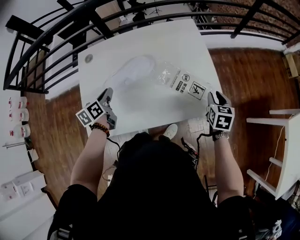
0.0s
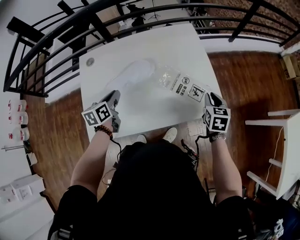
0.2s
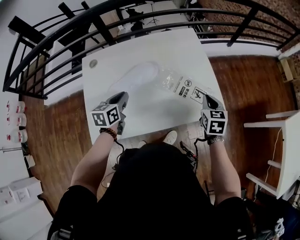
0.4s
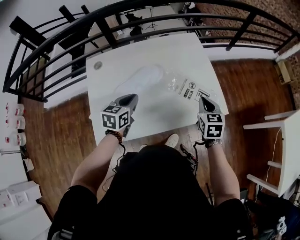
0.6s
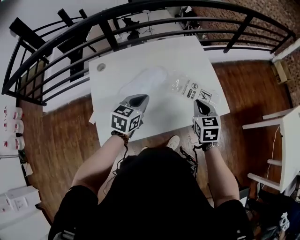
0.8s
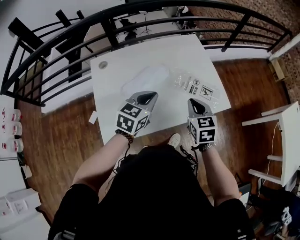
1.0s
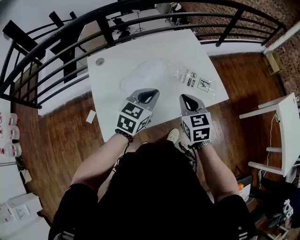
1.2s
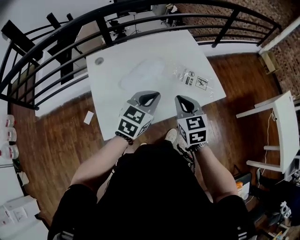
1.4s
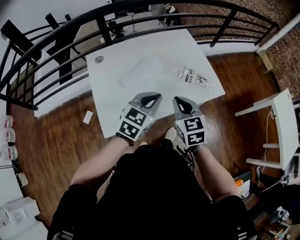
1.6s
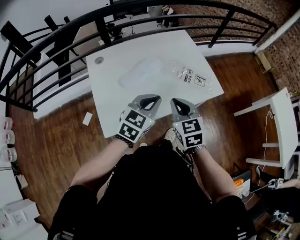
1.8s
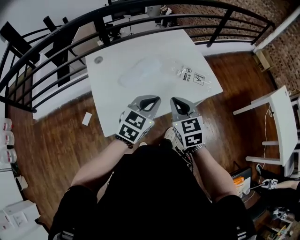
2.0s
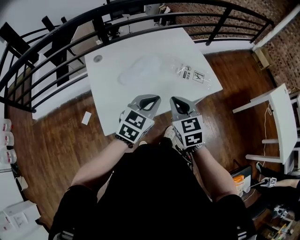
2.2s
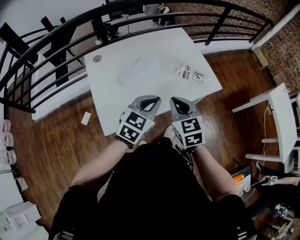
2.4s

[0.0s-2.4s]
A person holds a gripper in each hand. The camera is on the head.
0.0s to 1.2s: The right gripper travels to the left, backward and upward by approximately 30 cm, and closes, while the left gripper is displaced to the right, upward and backward by some 20 cm, and rotates around the line of its fingers by approximately 50 degrees, clockwise from behind.
1.2s to 2.4s: The grippers both shift backward by some 10 cm.

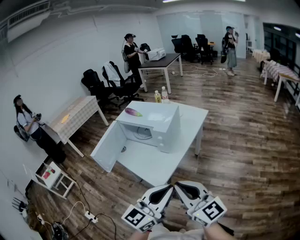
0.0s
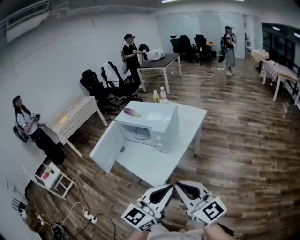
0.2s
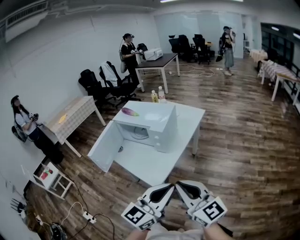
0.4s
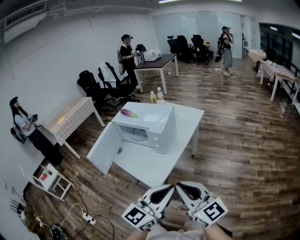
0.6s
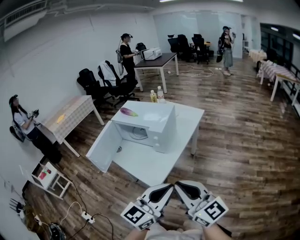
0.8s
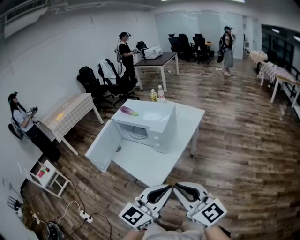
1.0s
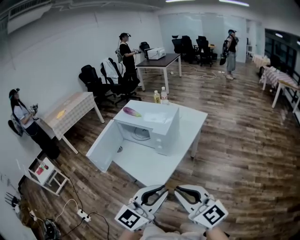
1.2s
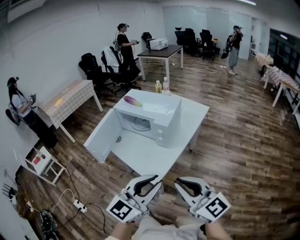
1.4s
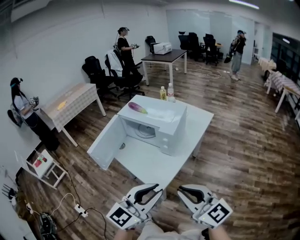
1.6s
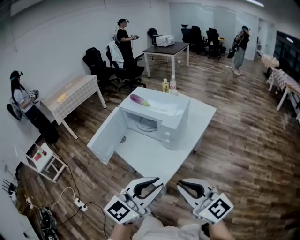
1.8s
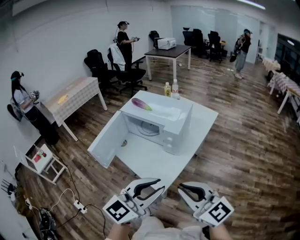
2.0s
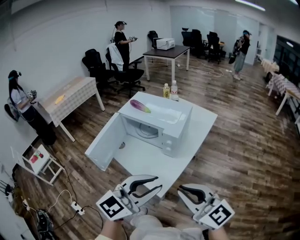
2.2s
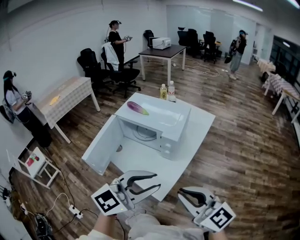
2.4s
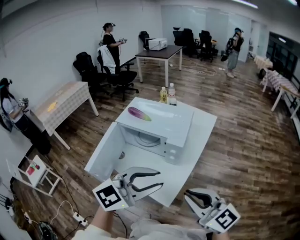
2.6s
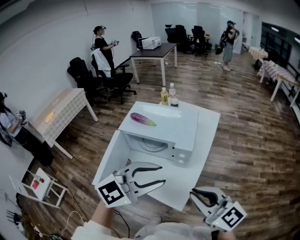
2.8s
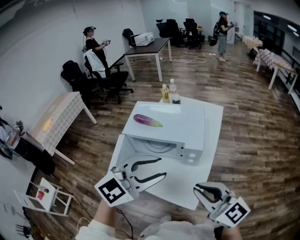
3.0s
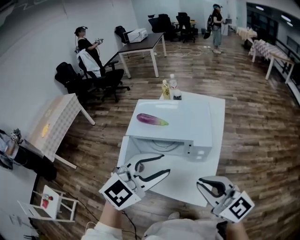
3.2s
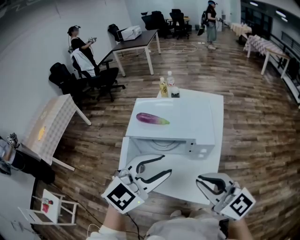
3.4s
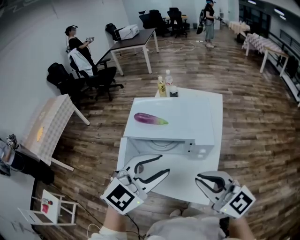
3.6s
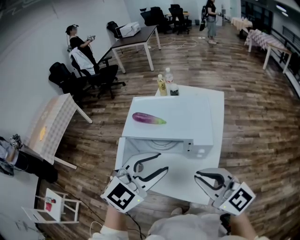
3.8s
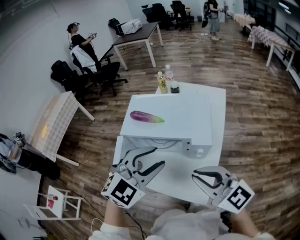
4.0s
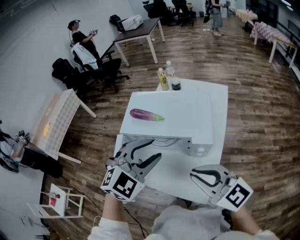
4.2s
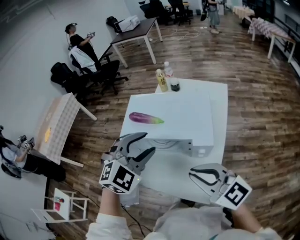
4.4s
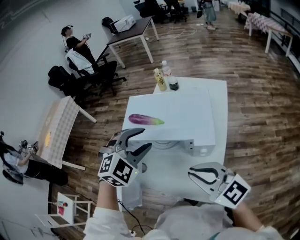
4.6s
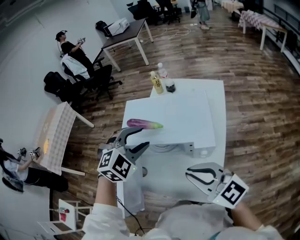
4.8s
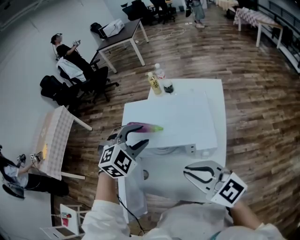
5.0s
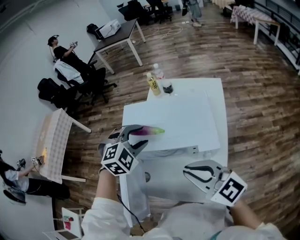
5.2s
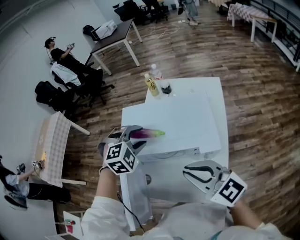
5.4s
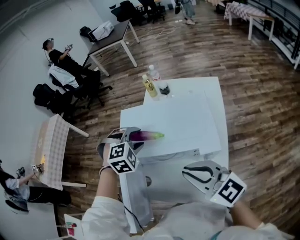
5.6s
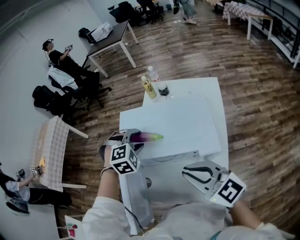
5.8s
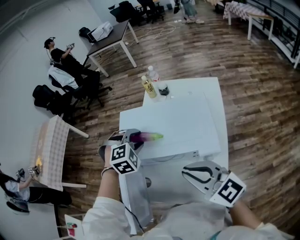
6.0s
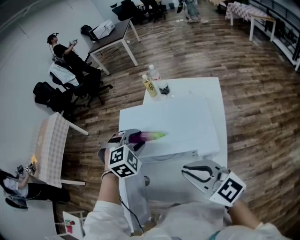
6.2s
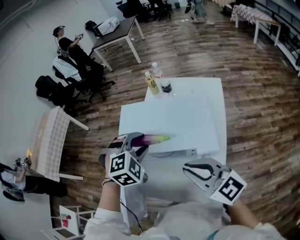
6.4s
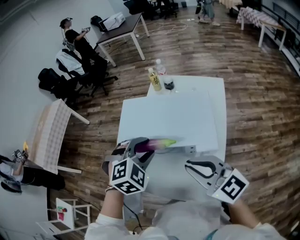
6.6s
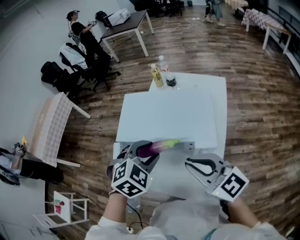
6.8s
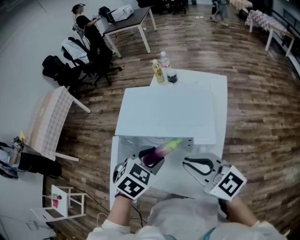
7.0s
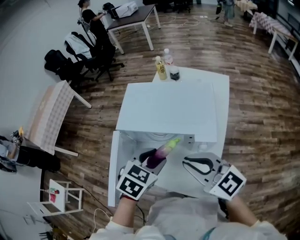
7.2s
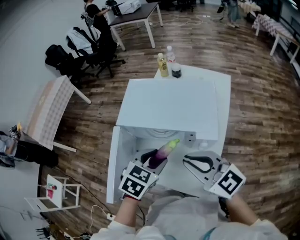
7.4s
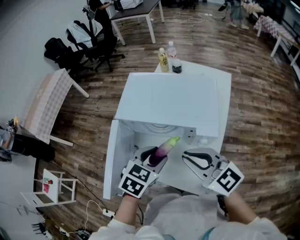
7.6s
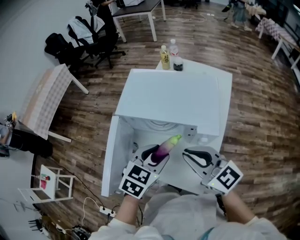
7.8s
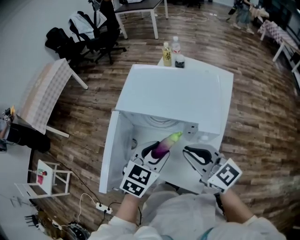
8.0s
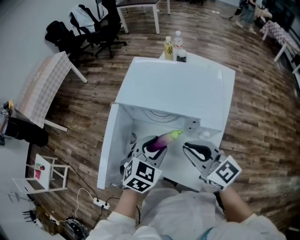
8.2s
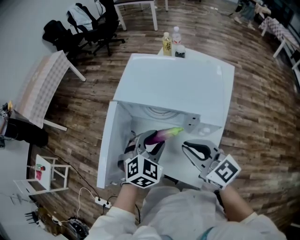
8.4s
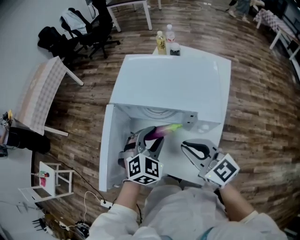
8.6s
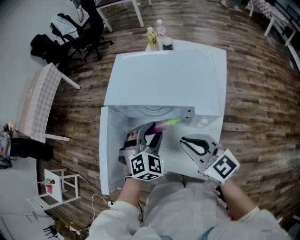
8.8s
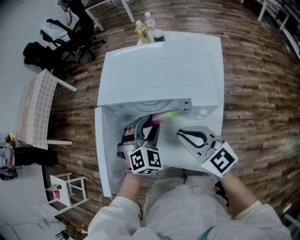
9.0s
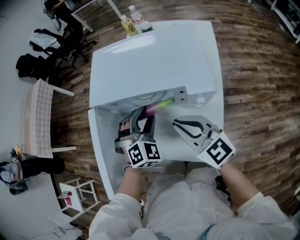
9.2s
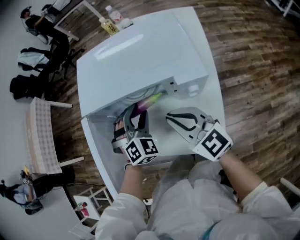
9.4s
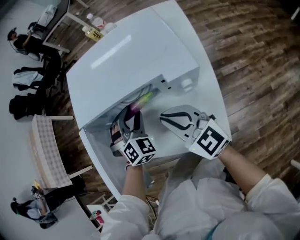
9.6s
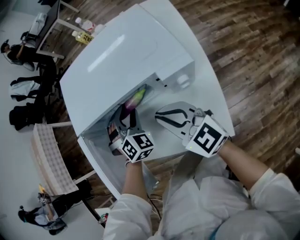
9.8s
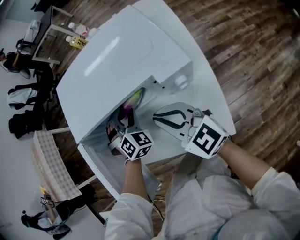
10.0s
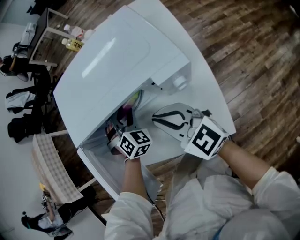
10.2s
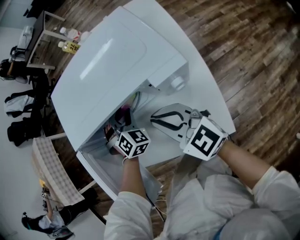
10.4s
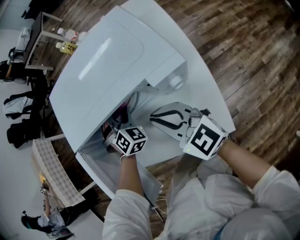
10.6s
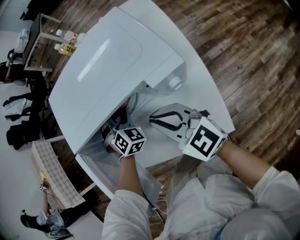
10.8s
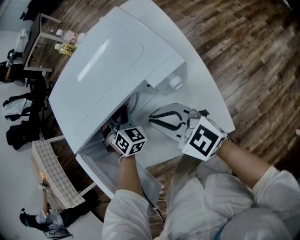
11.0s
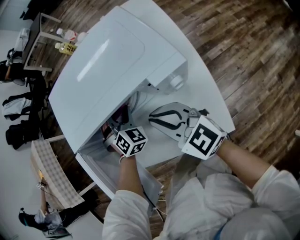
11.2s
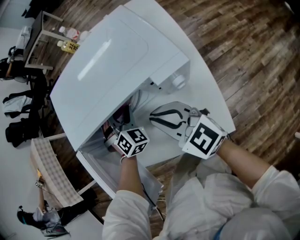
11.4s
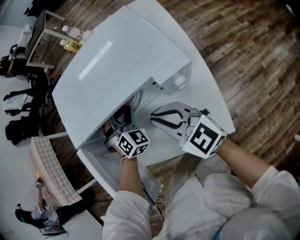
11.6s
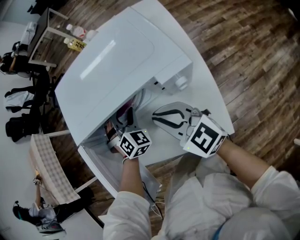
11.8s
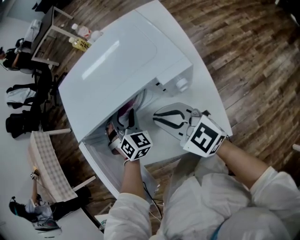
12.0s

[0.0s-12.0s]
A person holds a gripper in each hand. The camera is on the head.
0.0s to 1.6s: The left gripper goes roughly 5 cm to the left.
1.6s to 3.0s: The two grippers go about 25 cm forward and to the left. The left gripper rotates roughly 40 degrees, and opens up.
3.0s to 4.4s: The right gripper moves forward and to the left, roughly 10 cm. The left gripper heads forward, to the left and downward, covering roughly 15 cm, and rotates approximately 30 degrees.
4.4s to 6.0s: The left gripper is displaced forward and downward by approximately 20 cm, and changes its angle by some 30 degrees; the right gripper travels forward by some 10 cm.
6.0s to 7.6s: The left gripper shifts about 20 cm backward, and rolls counterclockwise, seen from behind, by approximately 60 degrees. Meanwhile the right gripper ends up about 5 cm from where it was.
7.6s to 9.0s: The left gripper travels downward and forward by some 10 cm, and twists some 40 degrees clockwise, seen from behind. The right gripper travels downward by some 5 cm.
9.0s to 10.4s: The right gripper travels downward by approximately 5 cm. Meanwhile the left gripper goes approximately 15 cm downward and forward.
10.4s to 12.0s: The grippers move only a little.

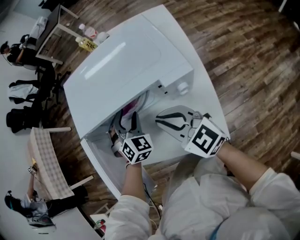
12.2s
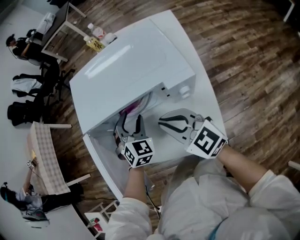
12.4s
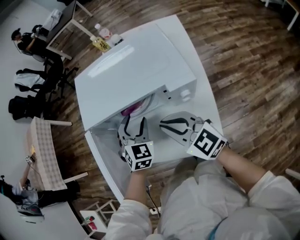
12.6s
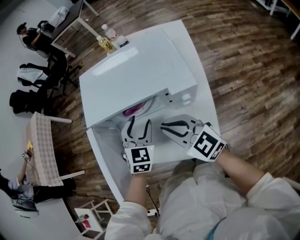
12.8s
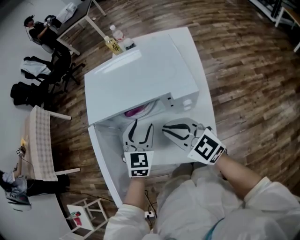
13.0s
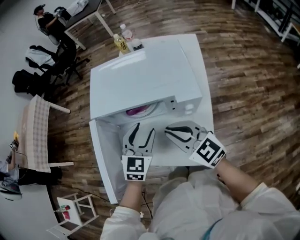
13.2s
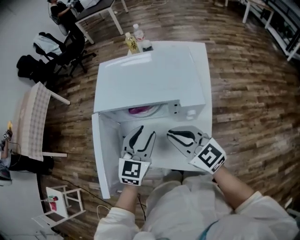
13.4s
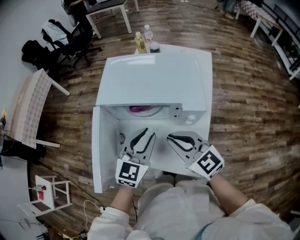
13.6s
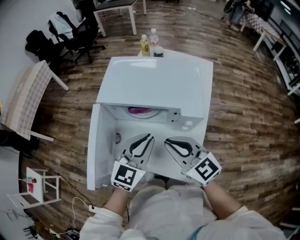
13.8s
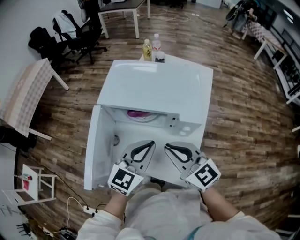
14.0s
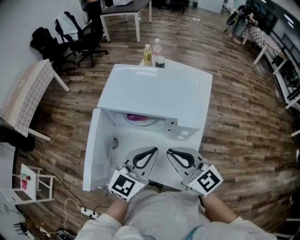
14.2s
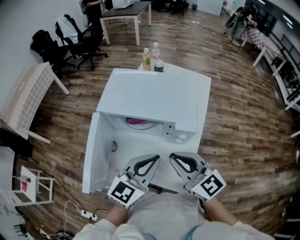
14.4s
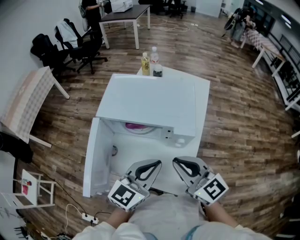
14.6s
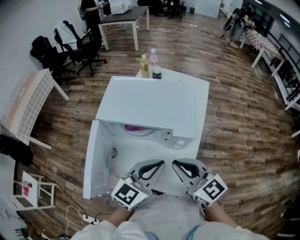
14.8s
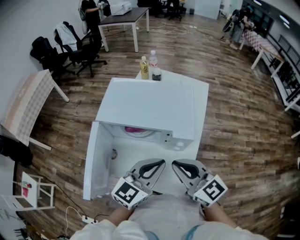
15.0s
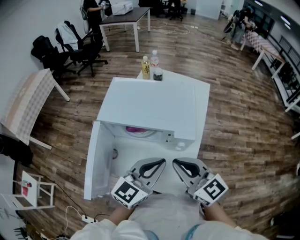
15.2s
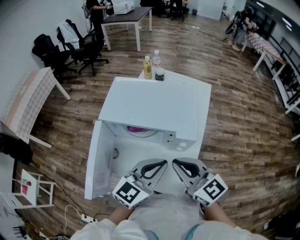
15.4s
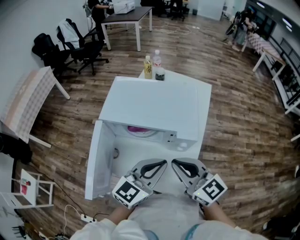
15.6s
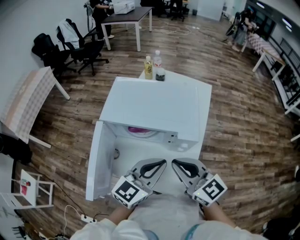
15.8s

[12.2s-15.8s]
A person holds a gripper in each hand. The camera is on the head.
12.2s to 14.0s: The left gripper heads upward and backward, covering about 25 cm, rolls counterclockwise, seen from behind, by roughly 40 degrees, and closes up. The right gripper shifts about 10 cm upward and backward.
14.0s to 15.8s: The left gripper shifts by about 5 cm.

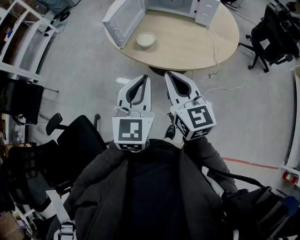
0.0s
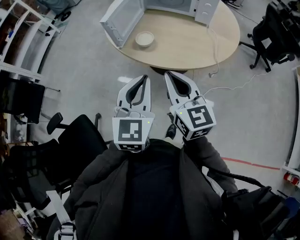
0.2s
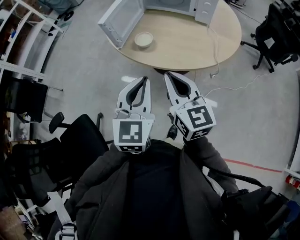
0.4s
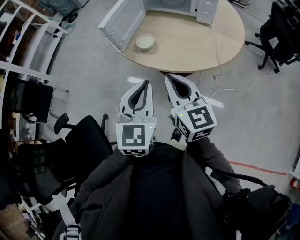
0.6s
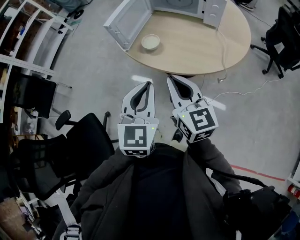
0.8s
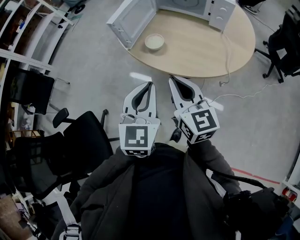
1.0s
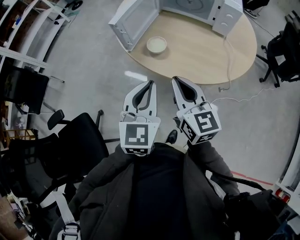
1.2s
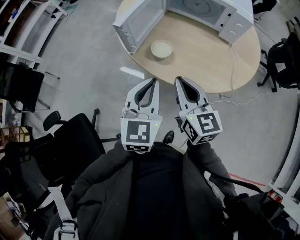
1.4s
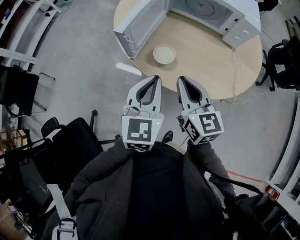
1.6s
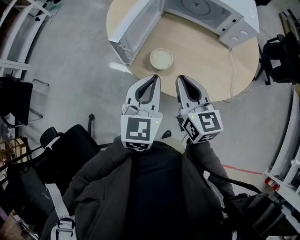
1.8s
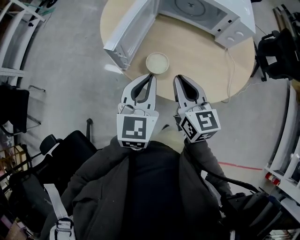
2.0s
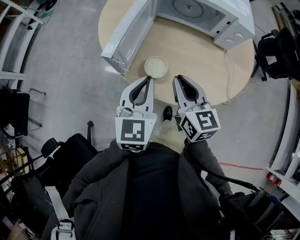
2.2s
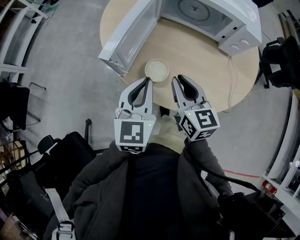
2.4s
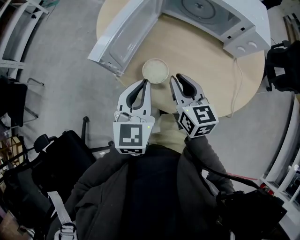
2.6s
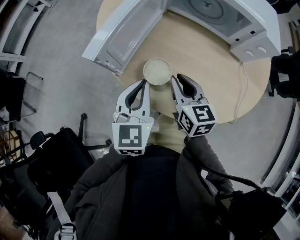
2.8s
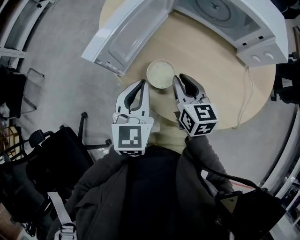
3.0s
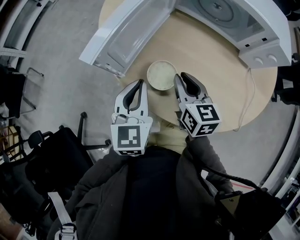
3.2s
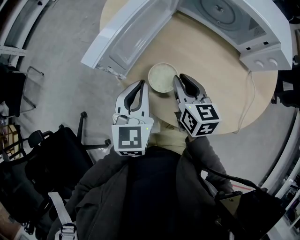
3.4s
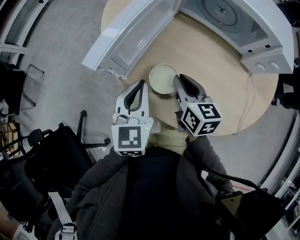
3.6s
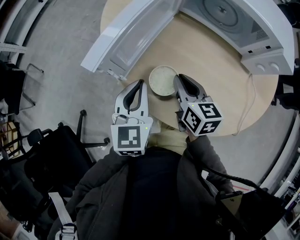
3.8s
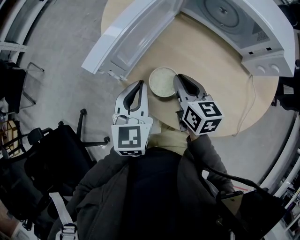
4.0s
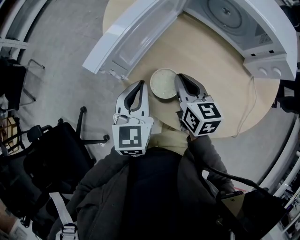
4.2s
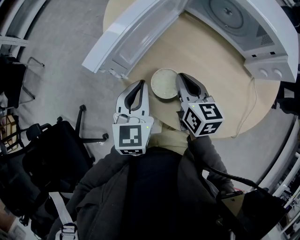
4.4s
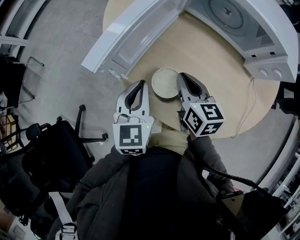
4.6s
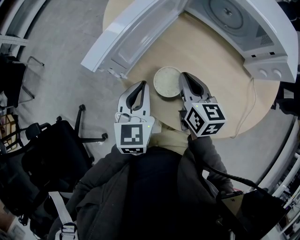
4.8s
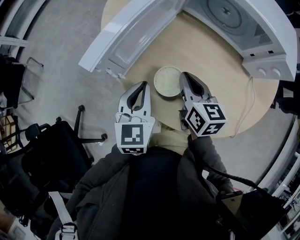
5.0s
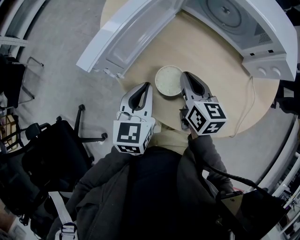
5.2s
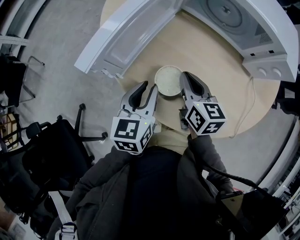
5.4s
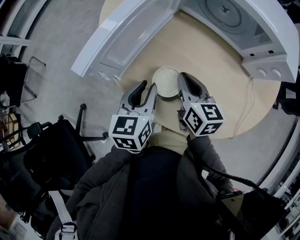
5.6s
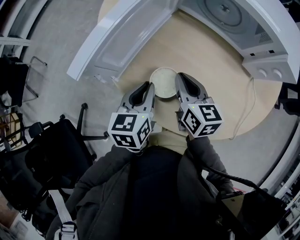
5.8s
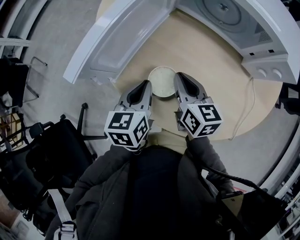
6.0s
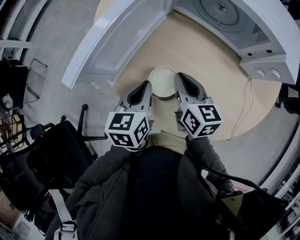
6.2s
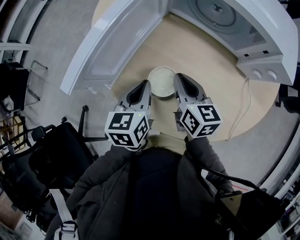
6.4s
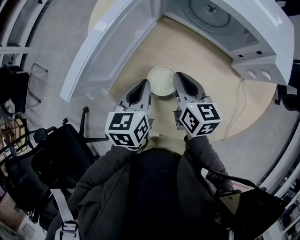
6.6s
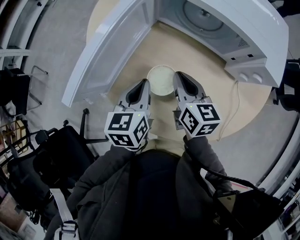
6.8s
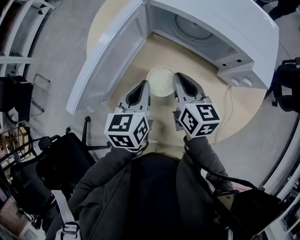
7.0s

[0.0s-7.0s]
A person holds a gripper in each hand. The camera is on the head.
0.0s to 1.4s: The two grippers go roughly 10 cm forward.
1.4s to 2.8s: The two grippers go roughly 20 cm forward and downward.
2.8s to 4.2s: The right gripper ends up roughly 5 cm from where it was; the left gripper changes place by some 5 cm.
4.2s to 5.6s: The left gripper moves approximately 5 cm, and opens up.
5.6s to 7.0s: The left gripper goes about 15 cm forward, upward and to the right, and closes. The right gripper moves upward, to the right and forward, some 15 cm.
